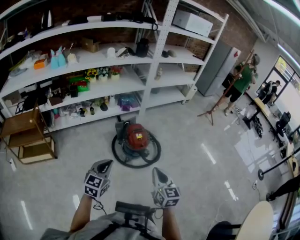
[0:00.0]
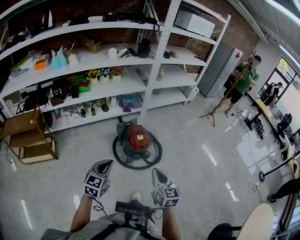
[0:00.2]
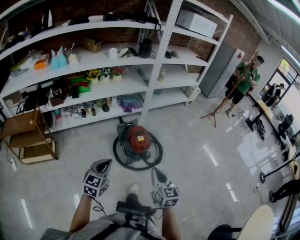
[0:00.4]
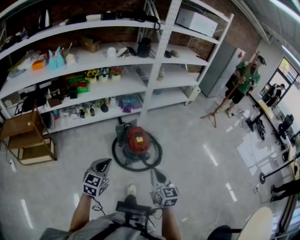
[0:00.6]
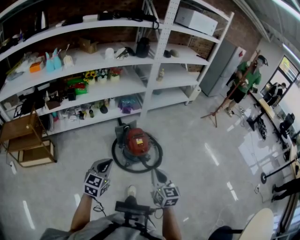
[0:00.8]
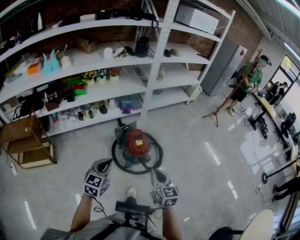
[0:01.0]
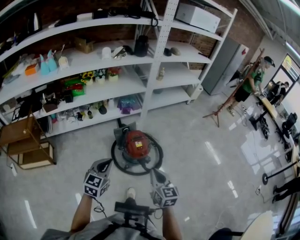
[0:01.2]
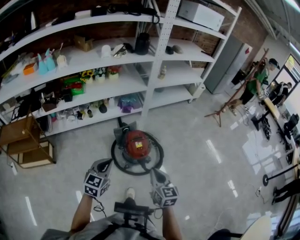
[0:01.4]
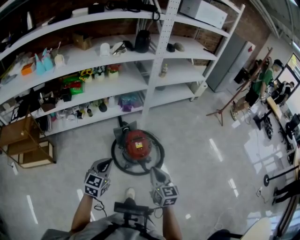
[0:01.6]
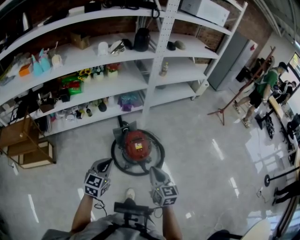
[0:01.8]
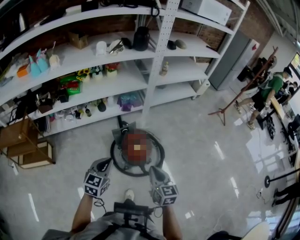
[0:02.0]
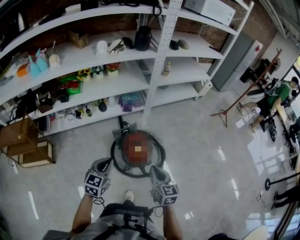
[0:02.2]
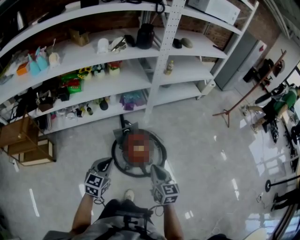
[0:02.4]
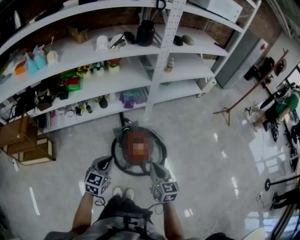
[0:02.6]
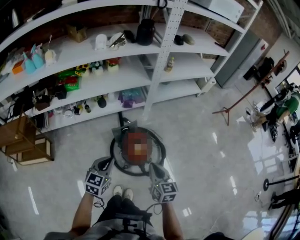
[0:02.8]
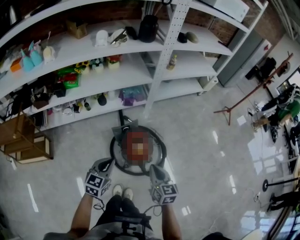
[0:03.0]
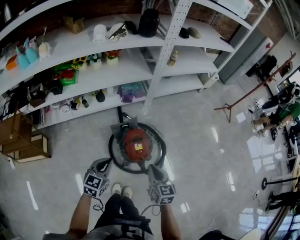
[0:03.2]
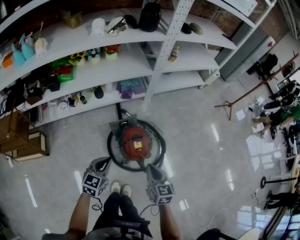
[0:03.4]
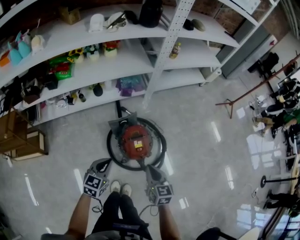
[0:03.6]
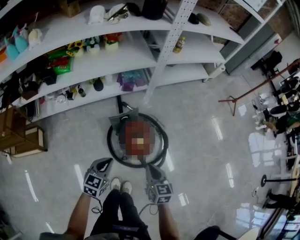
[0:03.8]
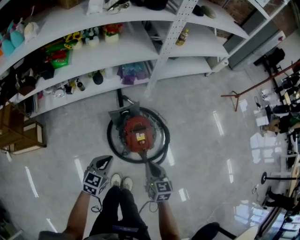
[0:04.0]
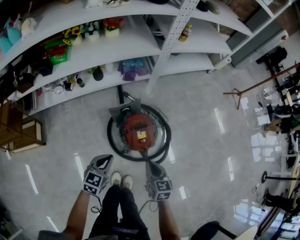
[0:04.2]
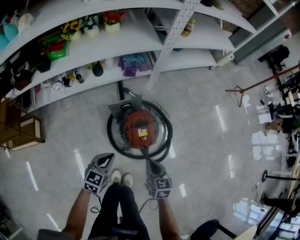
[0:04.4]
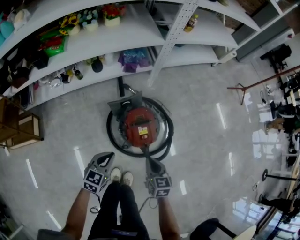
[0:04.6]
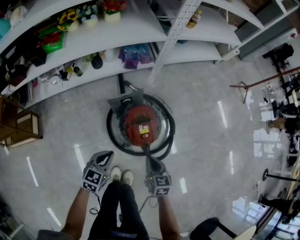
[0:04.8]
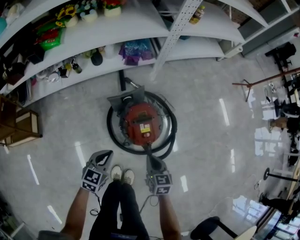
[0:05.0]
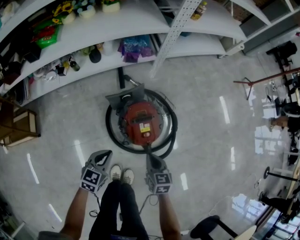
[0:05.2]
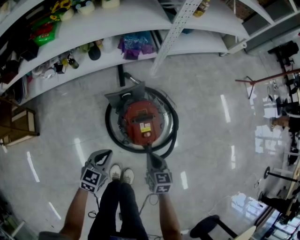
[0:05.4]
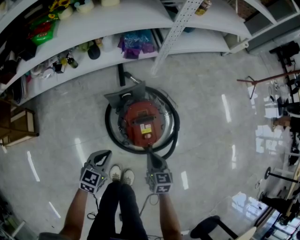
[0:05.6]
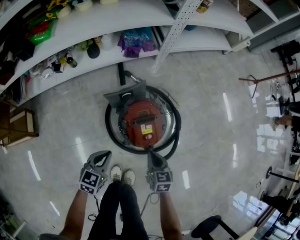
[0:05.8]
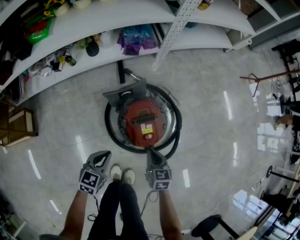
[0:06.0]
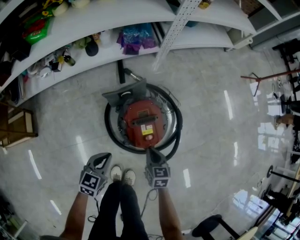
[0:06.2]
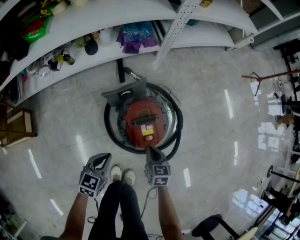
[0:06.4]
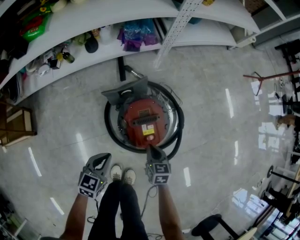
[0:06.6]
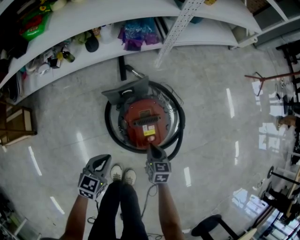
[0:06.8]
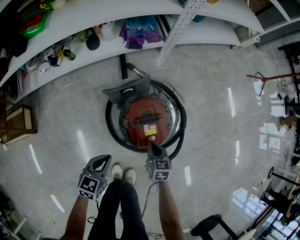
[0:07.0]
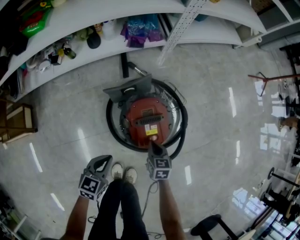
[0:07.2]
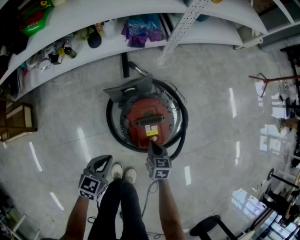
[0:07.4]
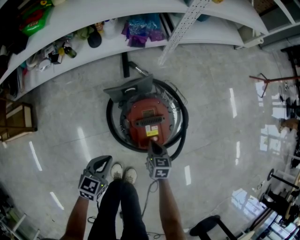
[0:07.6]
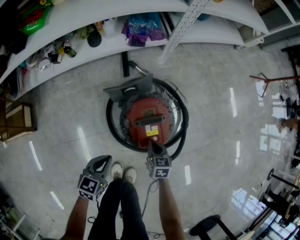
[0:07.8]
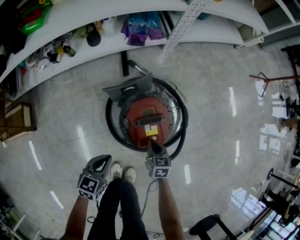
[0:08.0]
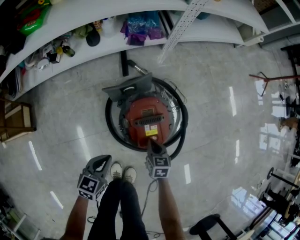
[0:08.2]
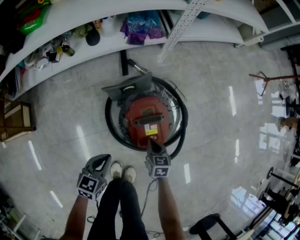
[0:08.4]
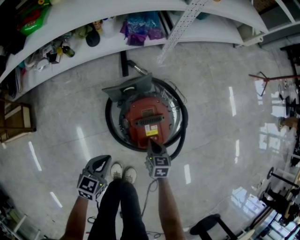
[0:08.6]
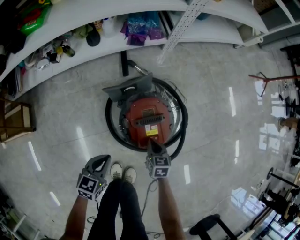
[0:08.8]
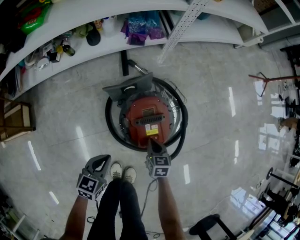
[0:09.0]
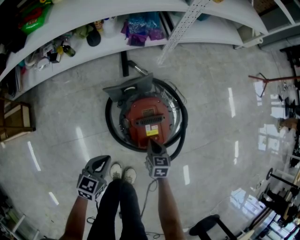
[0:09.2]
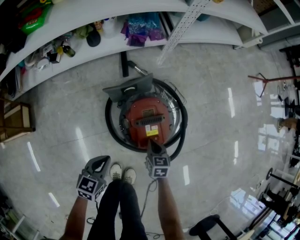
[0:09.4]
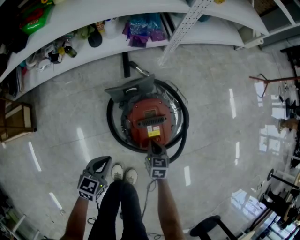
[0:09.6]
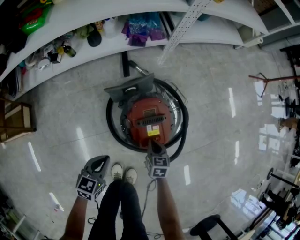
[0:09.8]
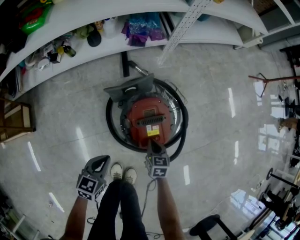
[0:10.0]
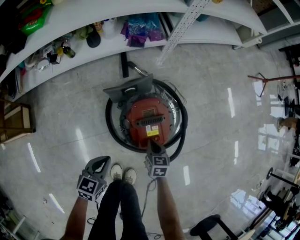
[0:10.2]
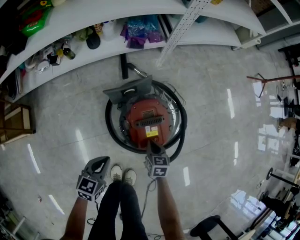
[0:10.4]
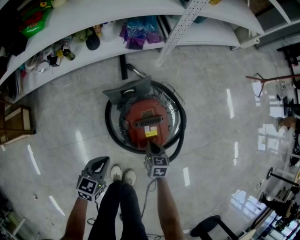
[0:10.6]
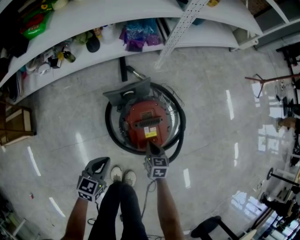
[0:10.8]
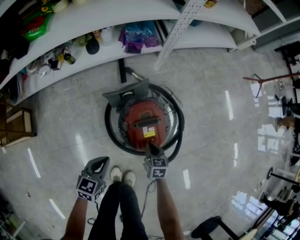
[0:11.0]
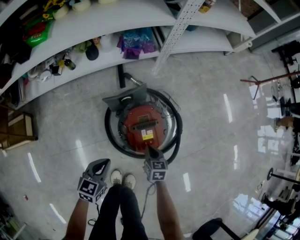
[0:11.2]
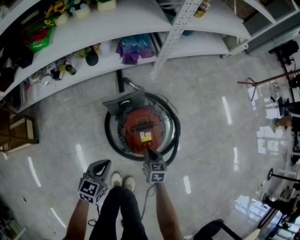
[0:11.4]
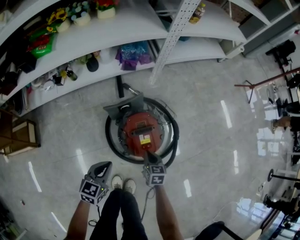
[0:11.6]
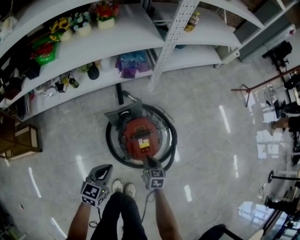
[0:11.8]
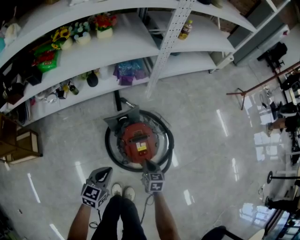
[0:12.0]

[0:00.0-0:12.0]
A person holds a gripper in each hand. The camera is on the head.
0:00.0 to 0:01.6: Both grippers travel together forward, roughly 20 cm.
0:01.6 to 0:03.0: Both grippers move forward and downward, about 15 cm.
0:03.0 to 0:04.4: Both grippers move downward, some 20 cm.
0:04.4 to 0:06.0: Both grippers move downward, approximately 15 cm.
0:06.0 to 0:07.6: The right gripper moves downward, roughly 10 cm.
0:07.6 to 0:09.0: The two grippers keep their place.
0:09.0 to 0:10.4: Neither gripper changes place.
0:10.4 to 0:12.0: The grippers both shift upward by approximately 15 cm.

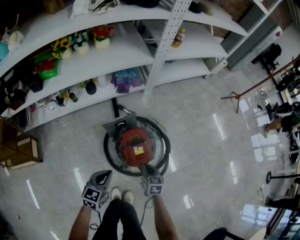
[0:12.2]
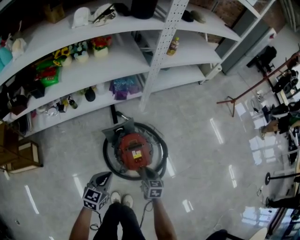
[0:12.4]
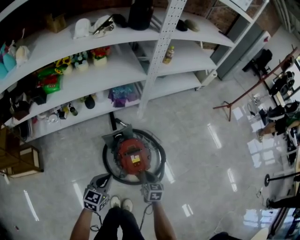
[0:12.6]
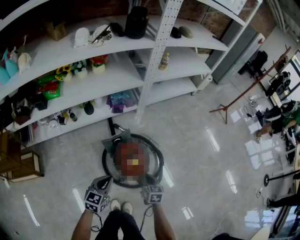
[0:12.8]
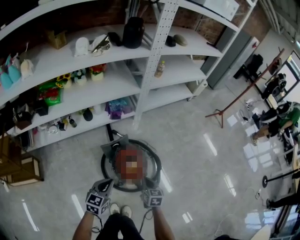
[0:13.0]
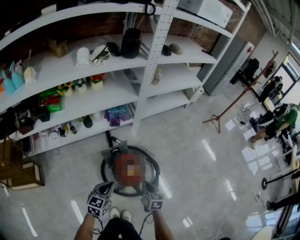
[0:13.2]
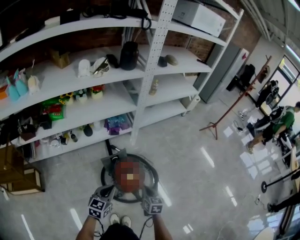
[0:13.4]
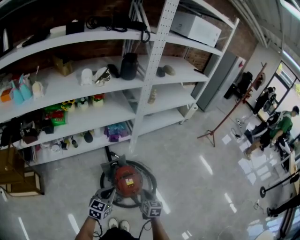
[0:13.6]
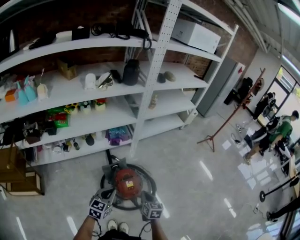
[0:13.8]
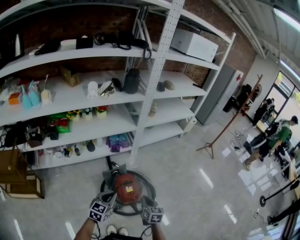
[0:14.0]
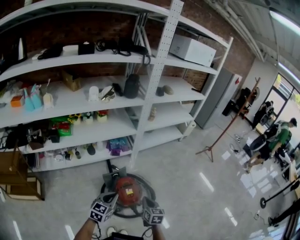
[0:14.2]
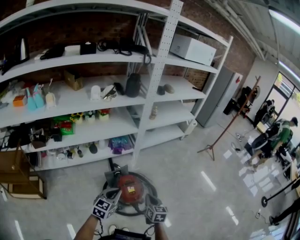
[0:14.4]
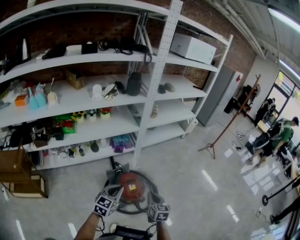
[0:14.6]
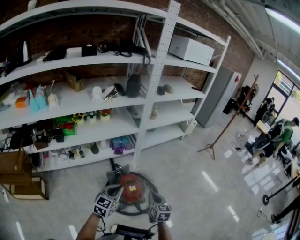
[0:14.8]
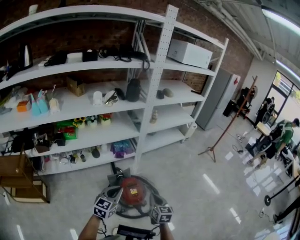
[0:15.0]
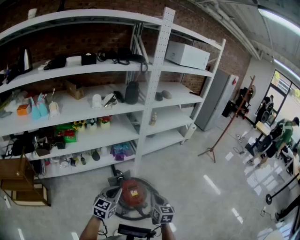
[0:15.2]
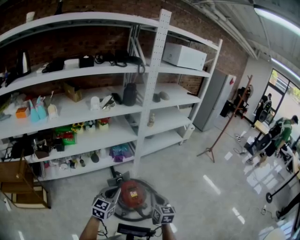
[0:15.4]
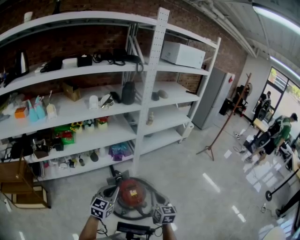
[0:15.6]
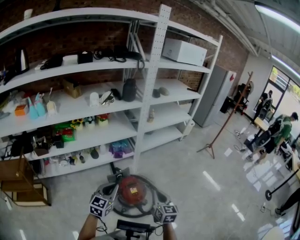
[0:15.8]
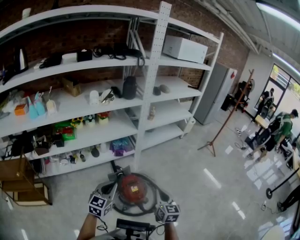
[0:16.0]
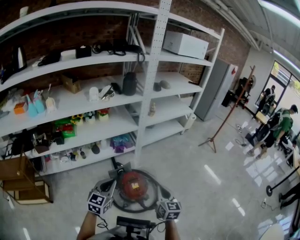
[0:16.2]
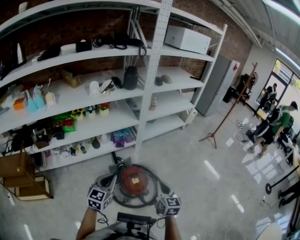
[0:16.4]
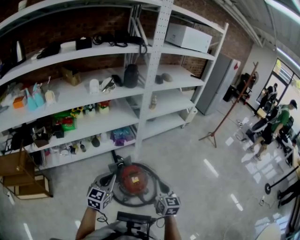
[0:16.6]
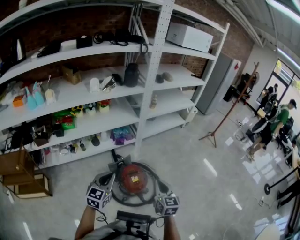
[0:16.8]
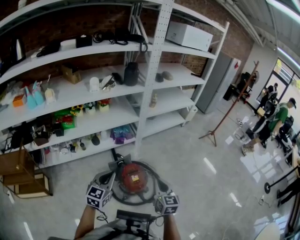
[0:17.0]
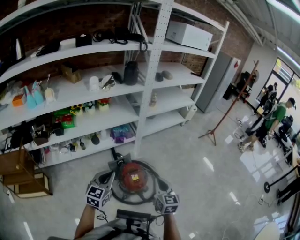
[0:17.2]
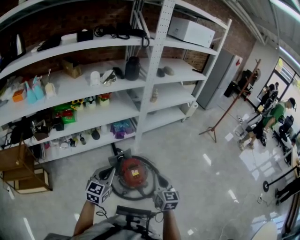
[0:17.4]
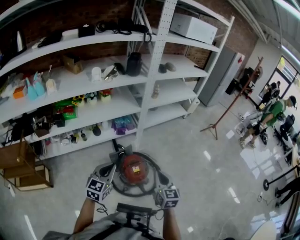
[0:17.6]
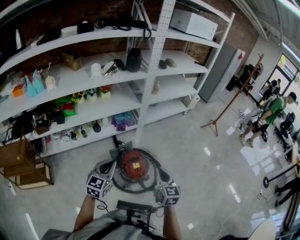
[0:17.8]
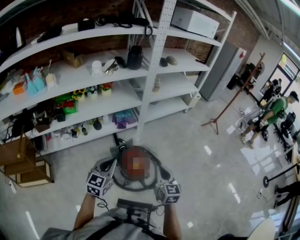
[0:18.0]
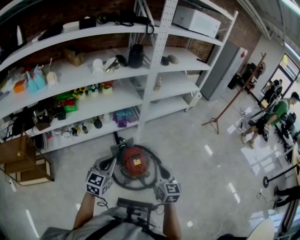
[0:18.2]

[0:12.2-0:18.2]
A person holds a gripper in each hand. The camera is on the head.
0:12.2 to 0:13.8: Both grippers travel together upward, some 25 cm.
0:13.8 to 0:15.2: The two grippers go approximately 10 cm upward.
0:15.2 to 0:16.6: The right gripper is displaced upward by some 5 cm.
0:16.6 to 0:18.2: The grippers stay close to where they were, moving slightly.

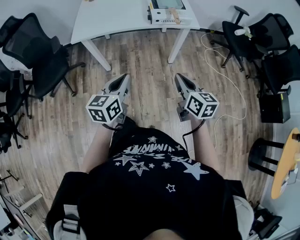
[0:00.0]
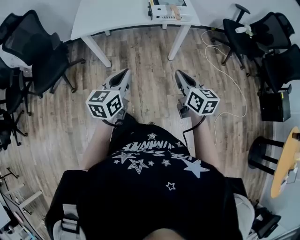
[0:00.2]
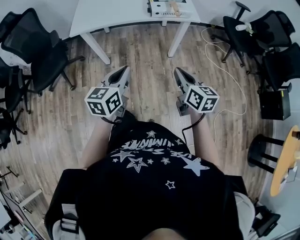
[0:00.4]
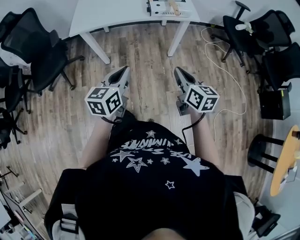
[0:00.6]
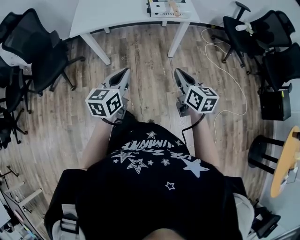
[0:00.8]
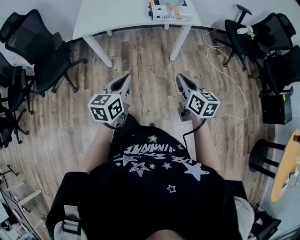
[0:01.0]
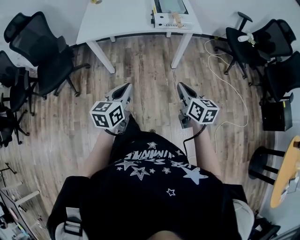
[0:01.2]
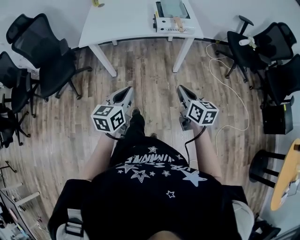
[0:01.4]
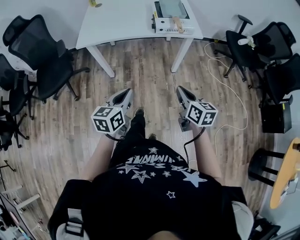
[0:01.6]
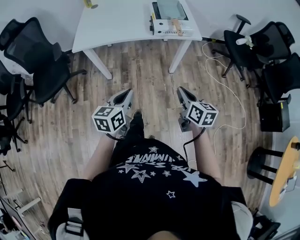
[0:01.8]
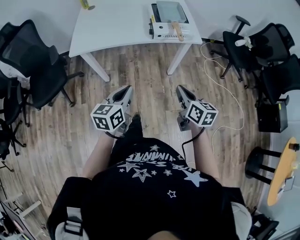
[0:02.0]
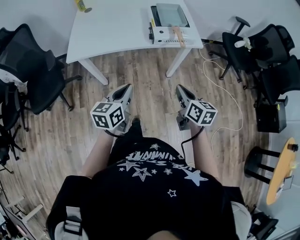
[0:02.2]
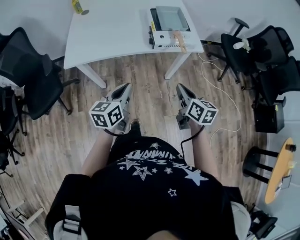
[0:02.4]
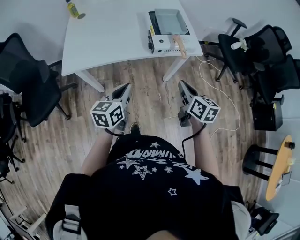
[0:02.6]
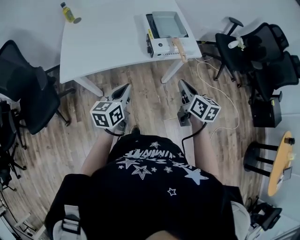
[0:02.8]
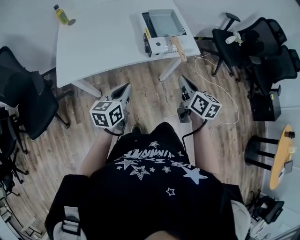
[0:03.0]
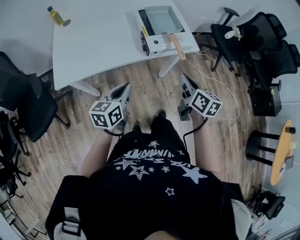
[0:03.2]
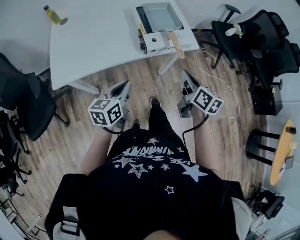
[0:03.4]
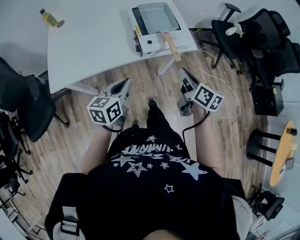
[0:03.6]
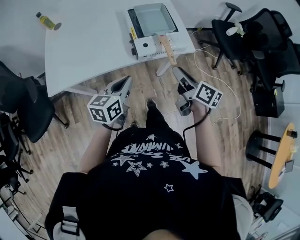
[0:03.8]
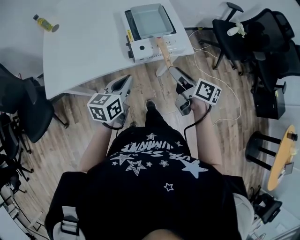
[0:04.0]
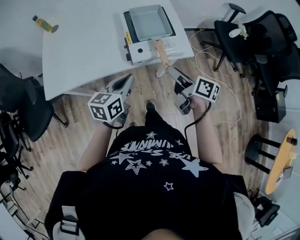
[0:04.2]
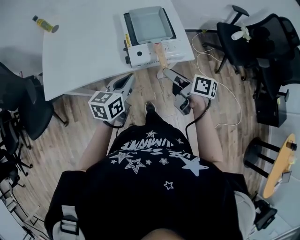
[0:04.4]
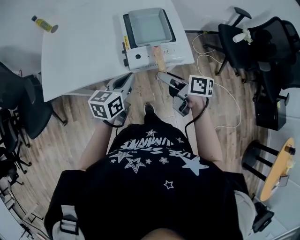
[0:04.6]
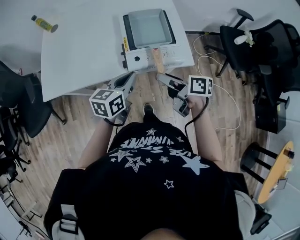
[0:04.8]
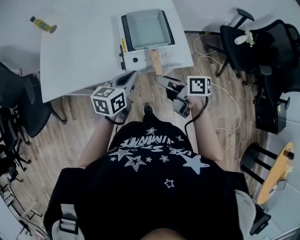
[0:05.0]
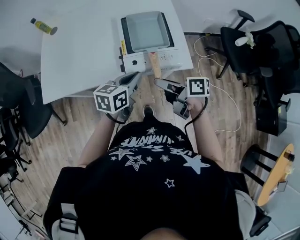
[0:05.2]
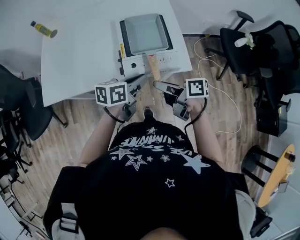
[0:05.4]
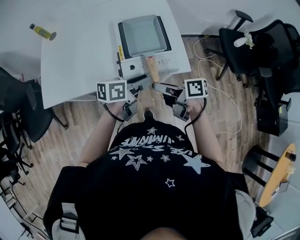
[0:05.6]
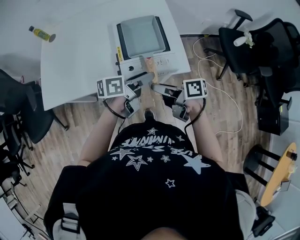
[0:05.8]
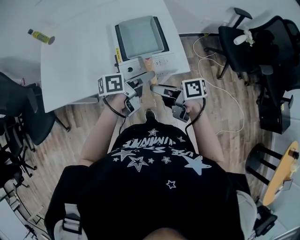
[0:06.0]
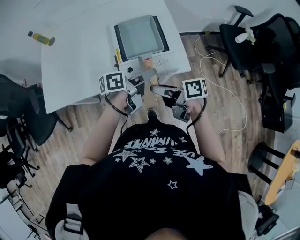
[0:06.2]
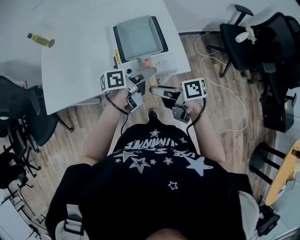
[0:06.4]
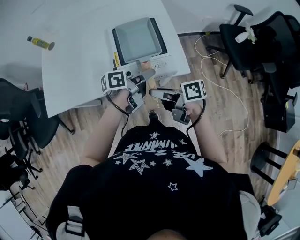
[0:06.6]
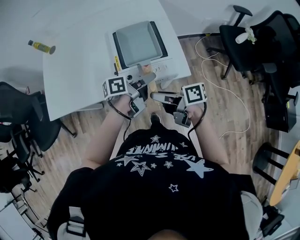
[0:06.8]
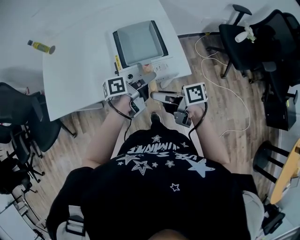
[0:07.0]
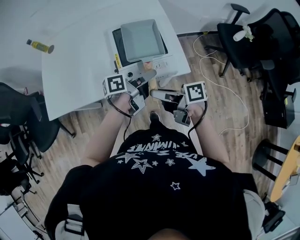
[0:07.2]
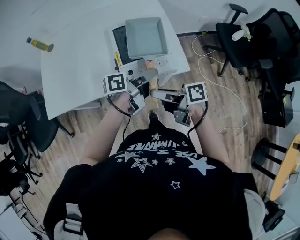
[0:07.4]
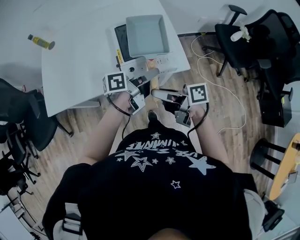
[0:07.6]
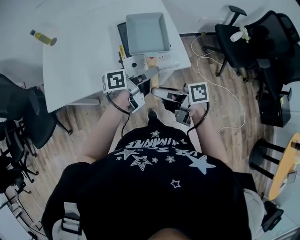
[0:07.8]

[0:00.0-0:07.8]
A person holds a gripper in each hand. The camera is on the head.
0:00.0 to 0:01.6: The grippers make only small movements.
0:01.6 to 0:03.2: Both grippers travel together forward, some 25 cm.
0:03.2 to 0:04.6: The left gripper goes about 20 cm forward and to the right. Meanwhile the right gripper shifts approximately 15 cm forward, turns by approximately 40 degrees, and opens up.
0:04.6 to 0:06.2: The right gripper rotates about 20 degrees, and closes up; the left gripper moves approximately 15 cm, rotates about 50 degrees, and opens.
0:06.2 to 0:07.8: The left gripper shifts by some 5 cm, and closes its fingers, while the right gripper changes place by approximately 10 cm.
